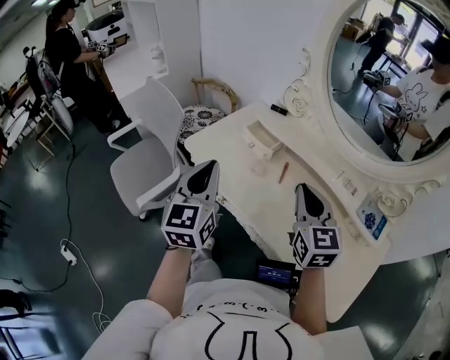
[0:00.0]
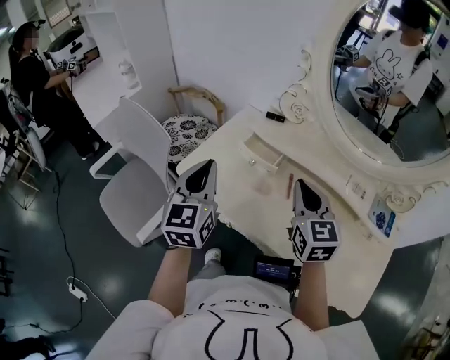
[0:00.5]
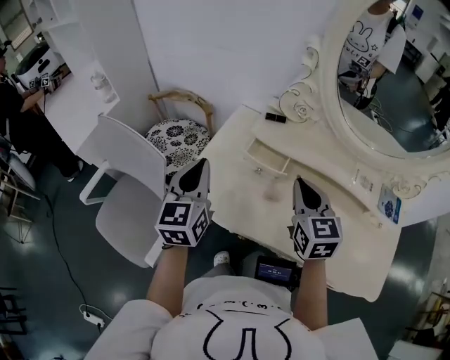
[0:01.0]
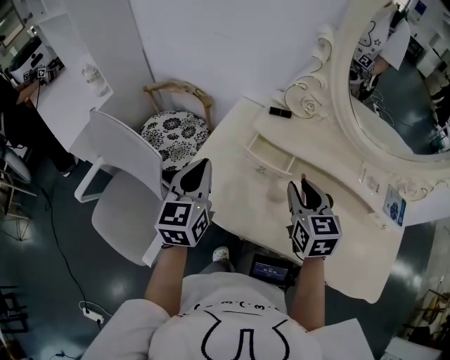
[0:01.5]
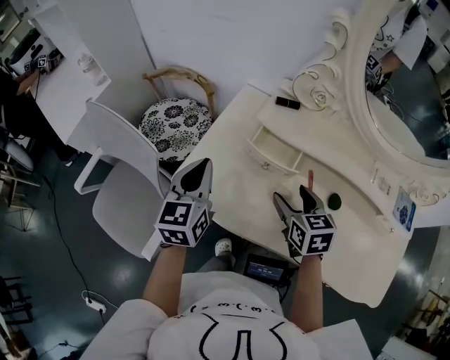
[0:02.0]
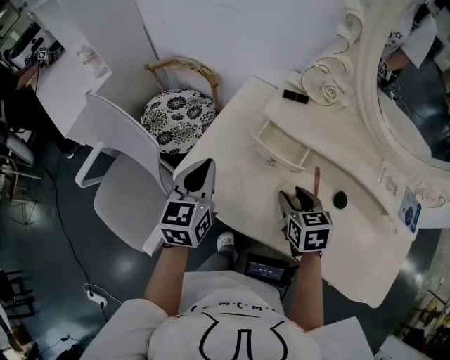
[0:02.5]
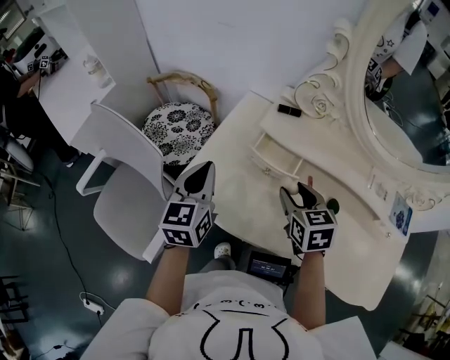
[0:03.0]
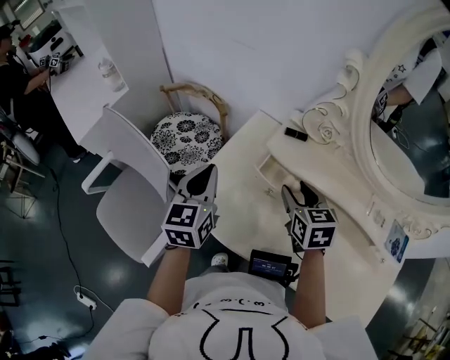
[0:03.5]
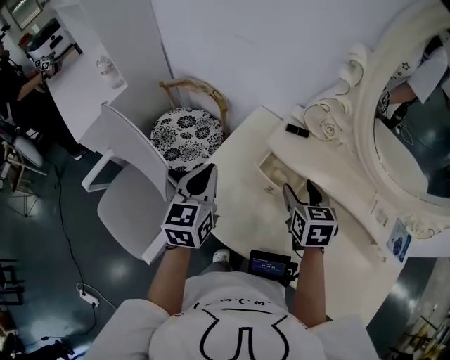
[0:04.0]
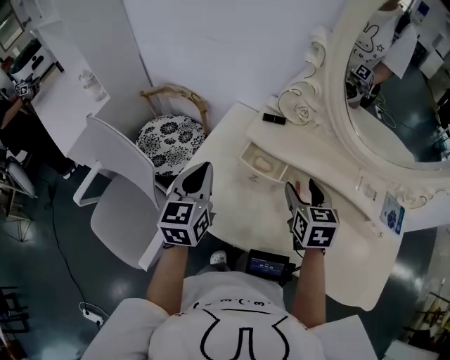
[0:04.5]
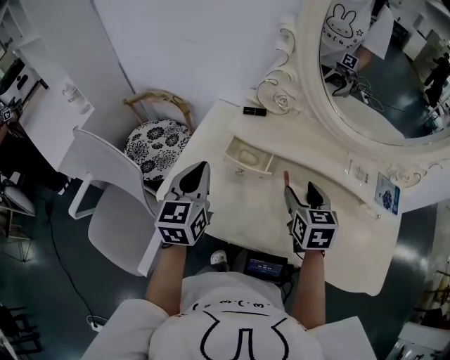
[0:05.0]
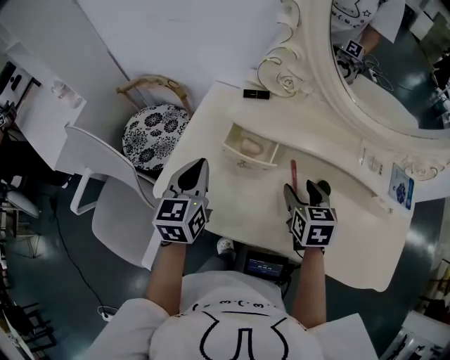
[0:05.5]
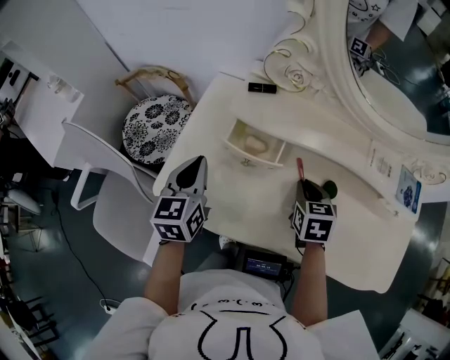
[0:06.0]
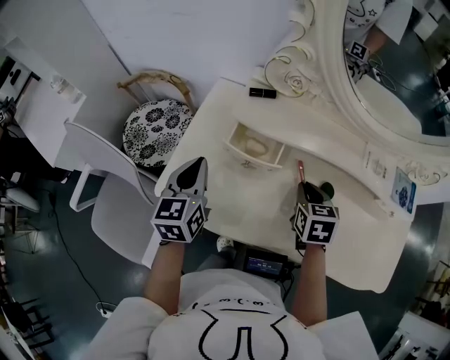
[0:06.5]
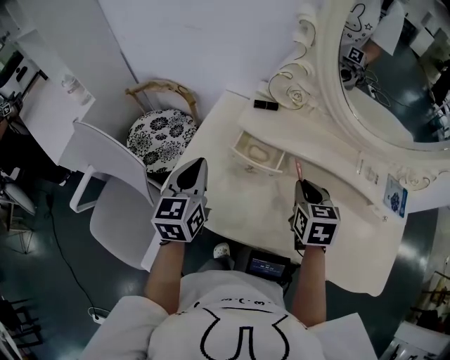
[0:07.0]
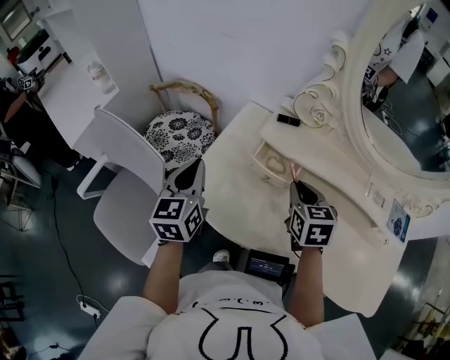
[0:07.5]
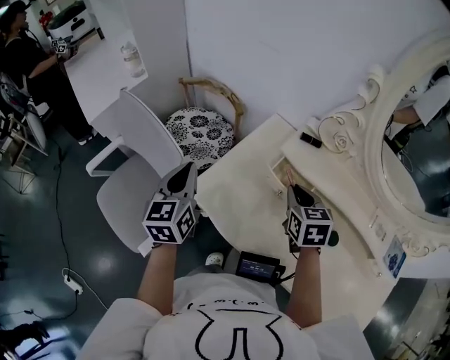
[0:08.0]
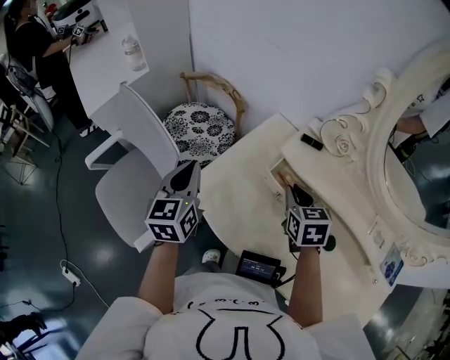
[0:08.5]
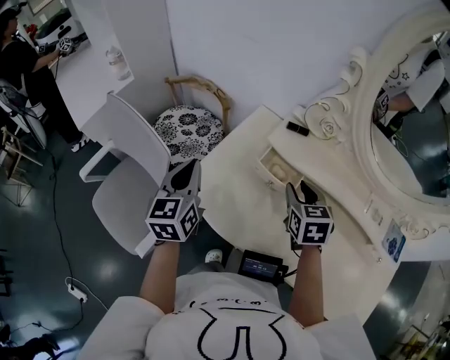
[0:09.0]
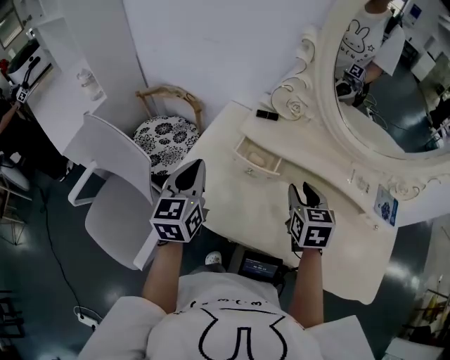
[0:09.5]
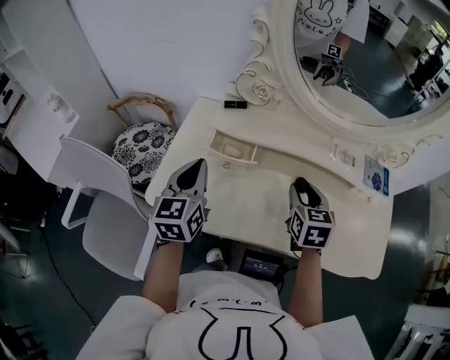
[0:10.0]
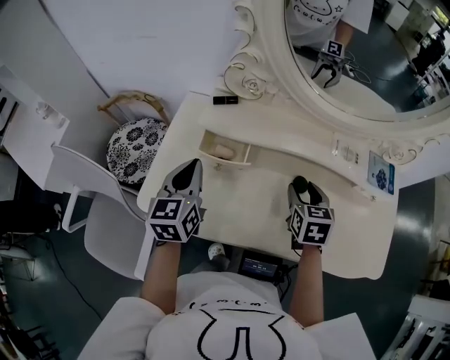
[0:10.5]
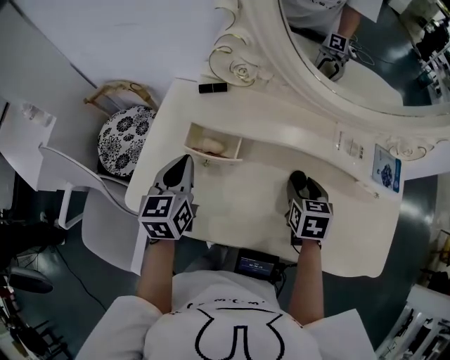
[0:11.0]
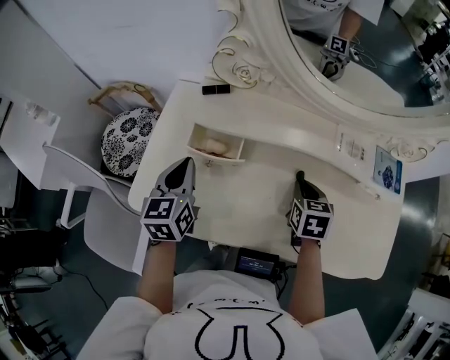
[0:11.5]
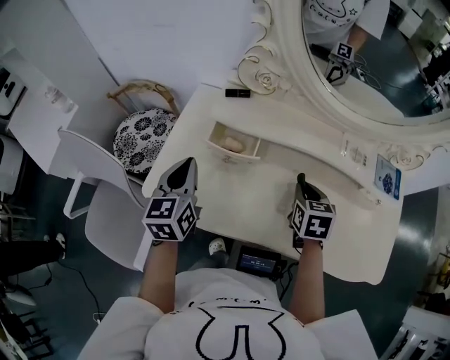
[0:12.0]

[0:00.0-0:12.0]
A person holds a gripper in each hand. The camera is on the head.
0.0 to 2.0 s: The right gripper goes approximately 25 cm downward, forward and to the left, swivels roughly 30 degrees, and opens up. The left gripper goes roughly 30 cm forward, downward and to the left, and turns by some 20 degrees.
2.0 to 4.0 s: The right gripper heads forward, covering about 10 cm.
4.0 to 6.0 s: The right gripper heads to the right, downward and backward, covering roughly 15 cm, and closes its fingers. Meanwhile the left gripper travels downward and to the right by about 10 cm.
6.0 to 8.0 s: Both grippers travel together to the left and upward, approximately 15 cm. The right gripper rotates roughly 20 degrees. The left gripper changes its angle by some 20 degrees.
8.0 to 10.0 s: The left gripper ends up about 20 cm from where it was, and turns by approximately 30 degrees. Meanwhile the right gripper moves about 20 cm, and turns by about 30 degrees.
10.0 to 12.0 s: The right gripper travels downward by roughly 5 cm.

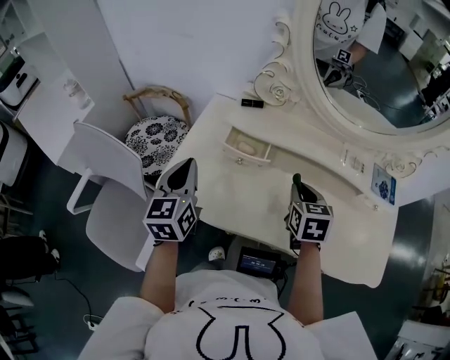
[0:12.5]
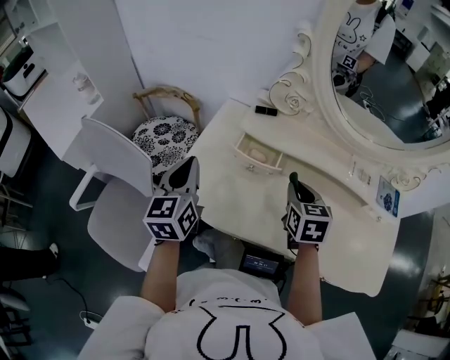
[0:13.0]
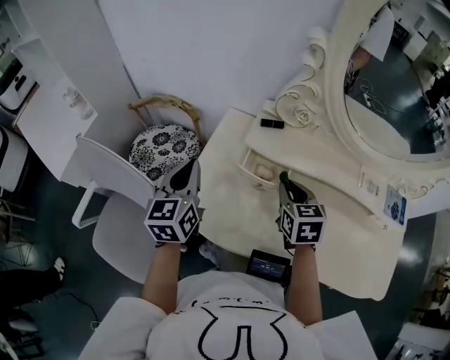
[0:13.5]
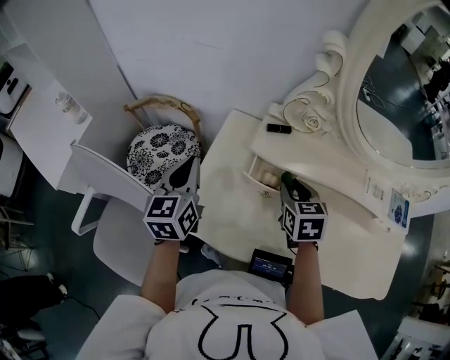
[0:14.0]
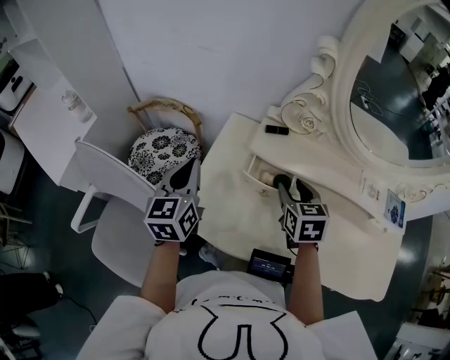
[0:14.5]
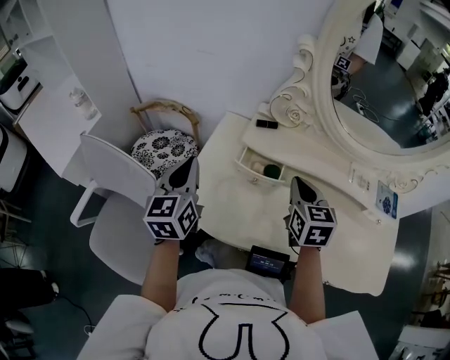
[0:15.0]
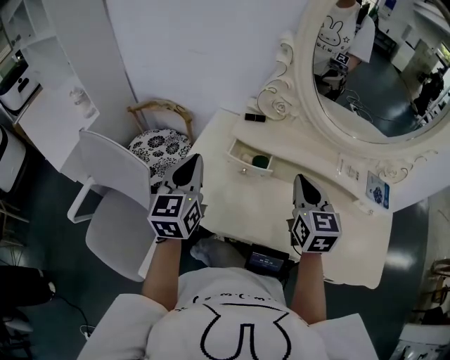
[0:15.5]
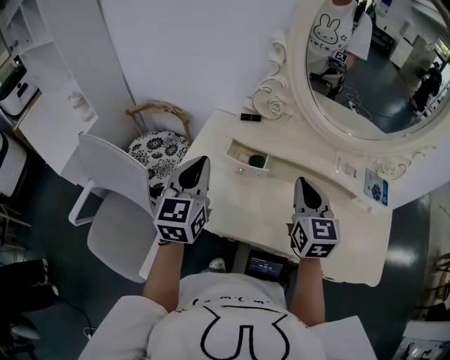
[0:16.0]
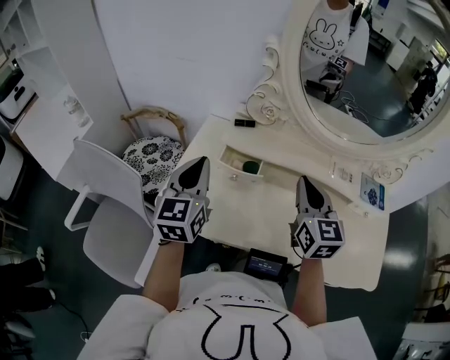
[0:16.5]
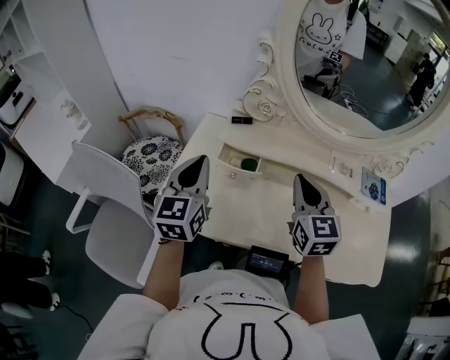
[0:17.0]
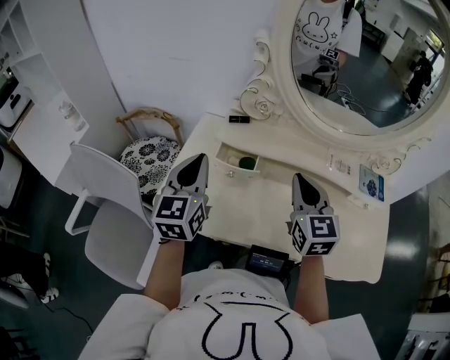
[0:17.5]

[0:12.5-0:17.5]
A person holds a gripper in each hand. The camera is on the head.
12.5 to 15.0 s: The right gripper heads to the left and upward, covering roughly 10 cm, and opens and closes again, while the left gripper heads to the left, covering about 5 cm.
15.0 to 17.5 s: The right gripper travels to the right, upward and backward by about 10 cm. Meanwhile the left gripper is displaced to the right by about 10 cm.

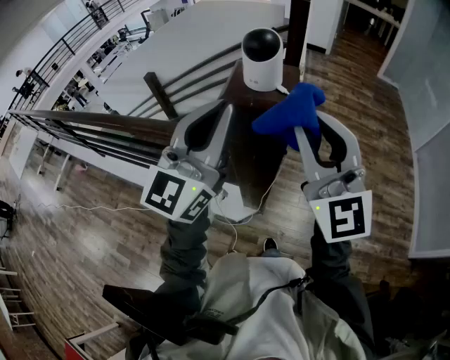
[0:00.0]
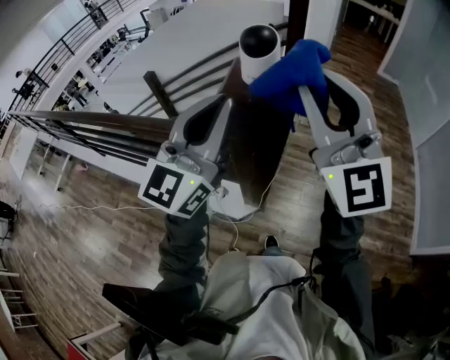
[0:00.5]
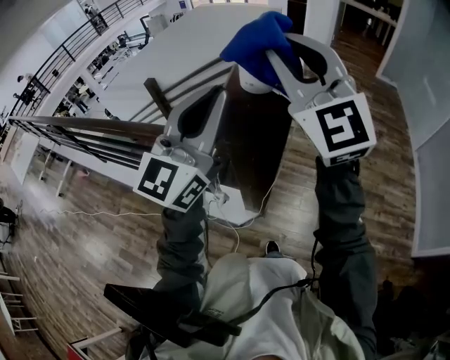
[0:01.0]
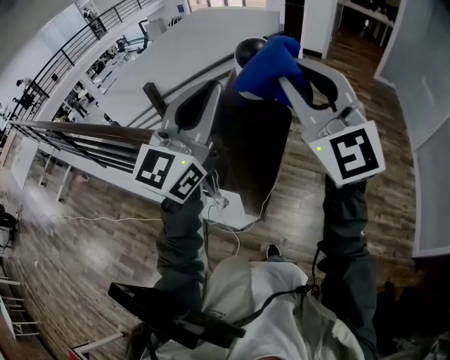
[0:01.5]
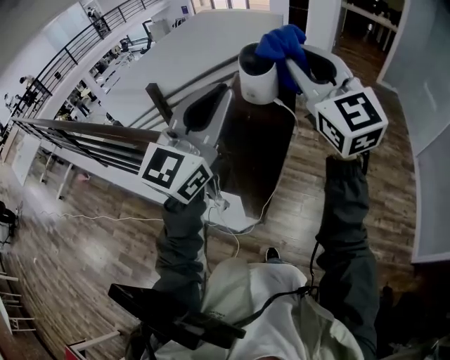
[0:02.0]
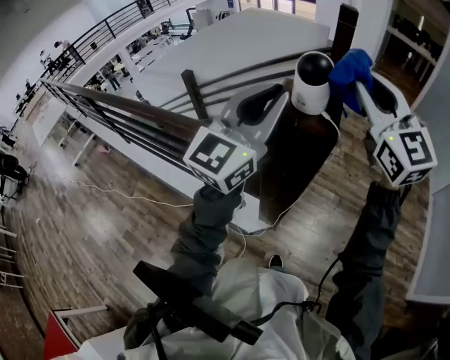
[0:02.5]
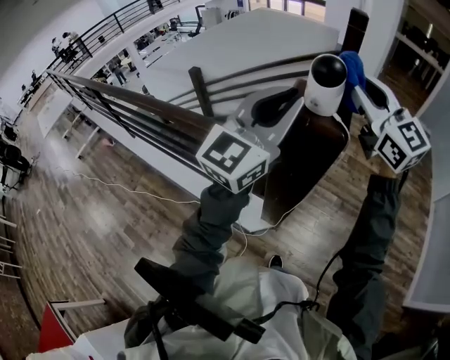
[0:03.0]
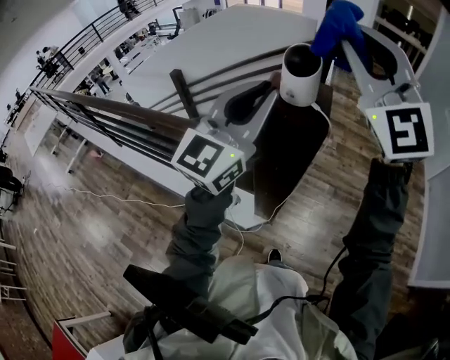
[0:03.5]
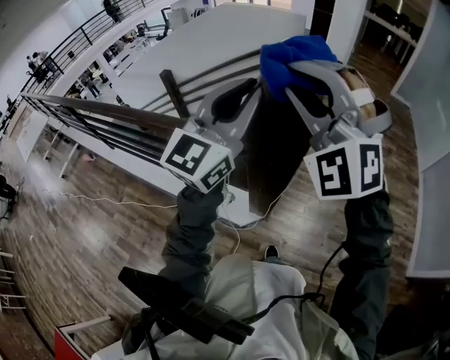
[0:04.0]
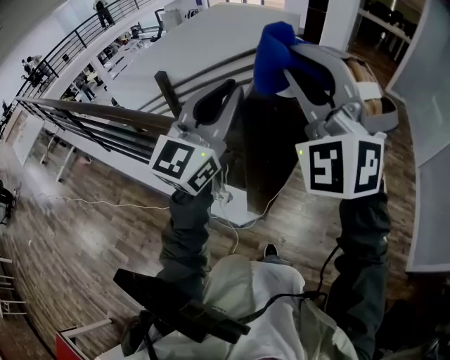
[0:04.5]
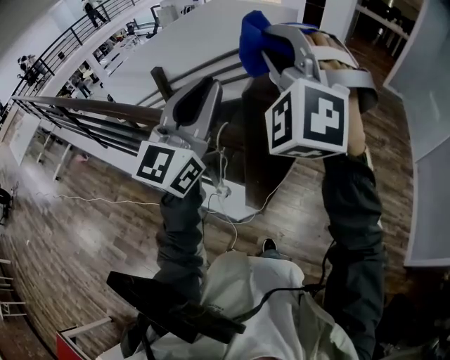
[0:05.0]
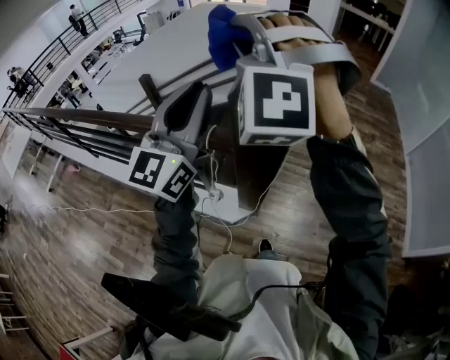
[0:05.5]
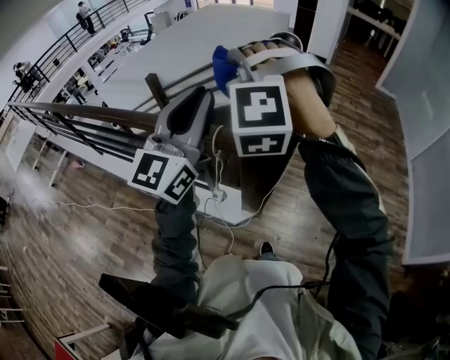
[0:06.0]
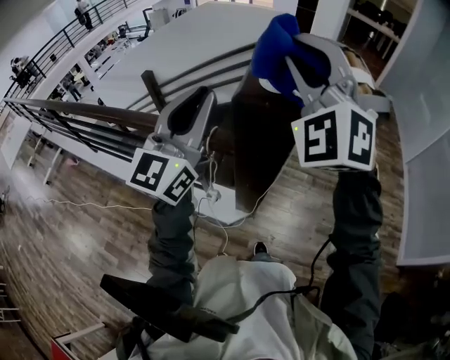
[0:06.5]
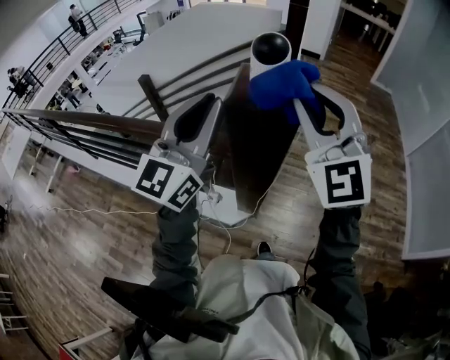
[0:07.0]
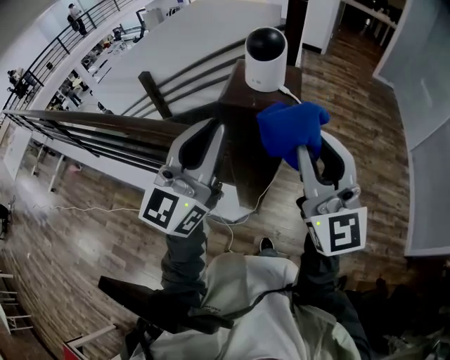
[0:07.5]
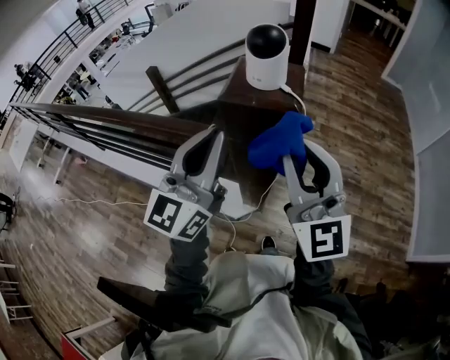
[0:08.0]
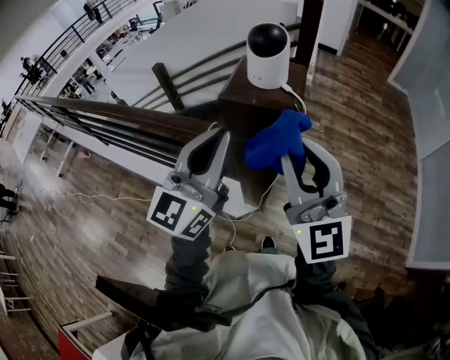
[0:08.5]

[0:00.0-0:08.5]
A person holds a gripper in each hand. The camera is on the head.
0.0 to 2.0 s: The right gripper goes approximately 15 cm forward and upward.
2.0 to 4.0 s: The right gripper heads to the left and backward, covering roughly 10 cm, and rotates around the line of its fingers by some 50 degrees, counterclockwise from behind.
4.0 to 6.5 s: The right gripper moves some 10 cm to the left and comes back; the left gripper heads to the left, covering some 5 cm.
6.5 to 8.5 s: The left gripper shifts some 10 cm to the right and downward. Meanwhile the right gripper goes approximately 15 cm downward and backward, and rolls clockwise, seen from behind, by about 60 degrees.

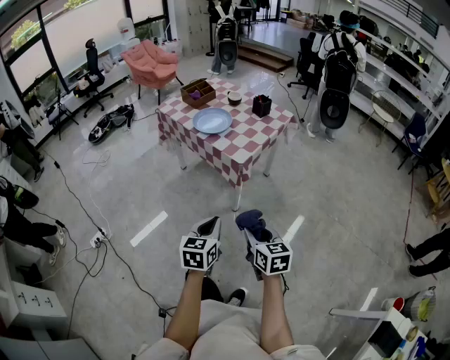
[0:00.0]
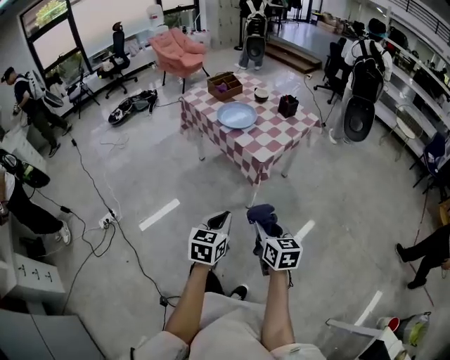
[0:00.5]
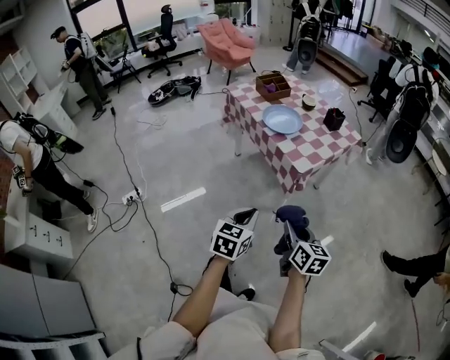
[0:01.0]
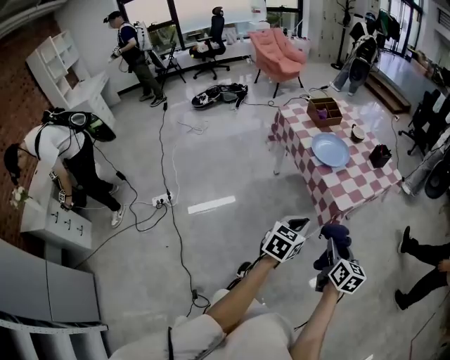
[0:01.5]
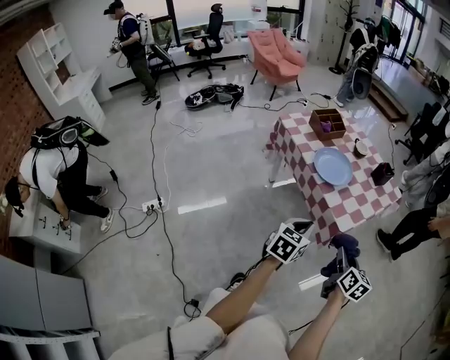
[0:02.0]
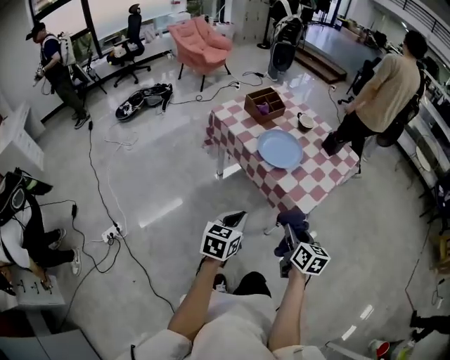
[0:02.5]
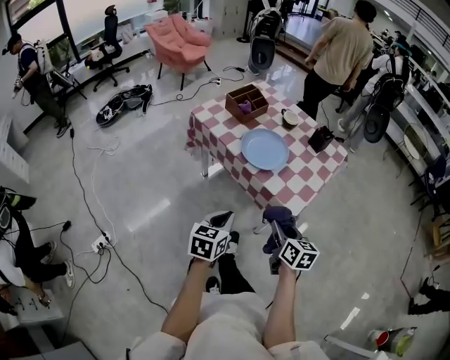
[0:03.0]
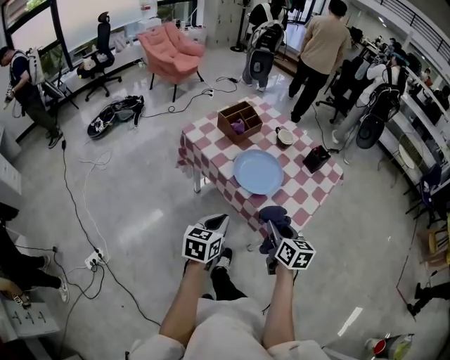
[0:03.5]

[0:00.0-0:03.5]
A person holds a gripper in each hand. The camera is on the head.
0.0 to 2.0 s: Both grippers move forward, about 25 cm.
2.0 to 3.5 s: The grippers both shift forward and to the left by some 20 cm.
